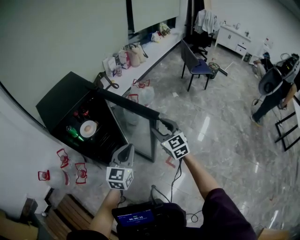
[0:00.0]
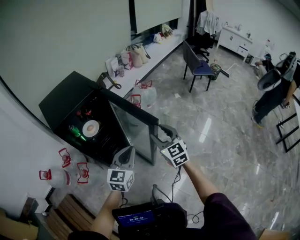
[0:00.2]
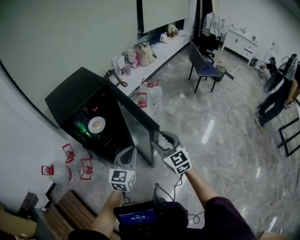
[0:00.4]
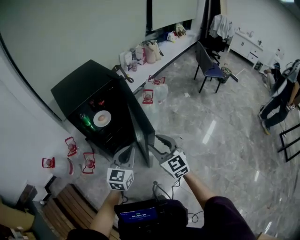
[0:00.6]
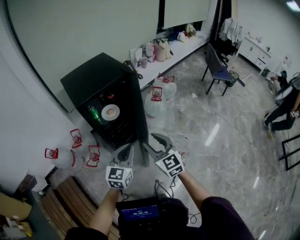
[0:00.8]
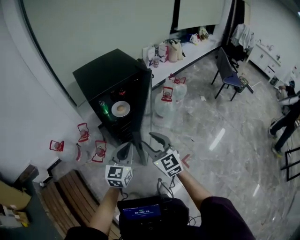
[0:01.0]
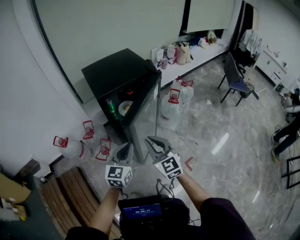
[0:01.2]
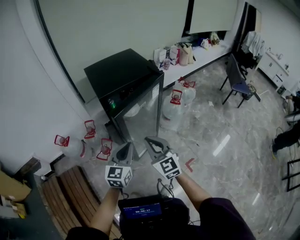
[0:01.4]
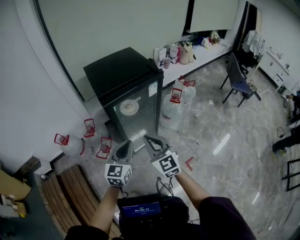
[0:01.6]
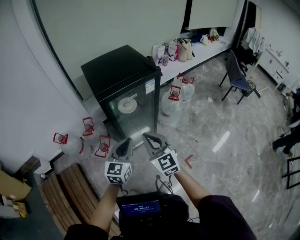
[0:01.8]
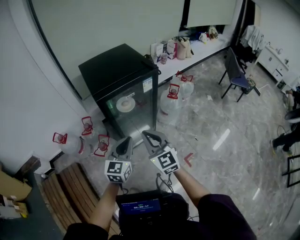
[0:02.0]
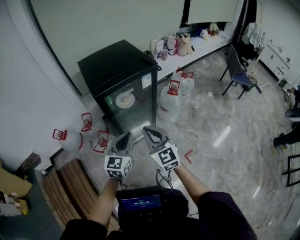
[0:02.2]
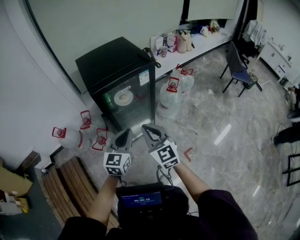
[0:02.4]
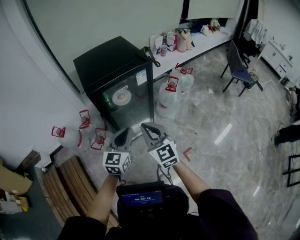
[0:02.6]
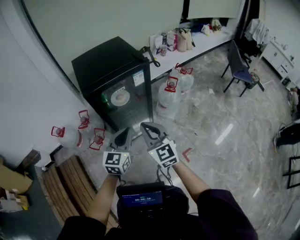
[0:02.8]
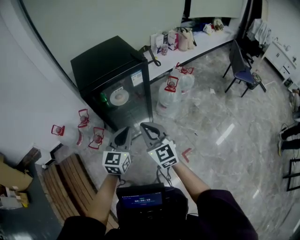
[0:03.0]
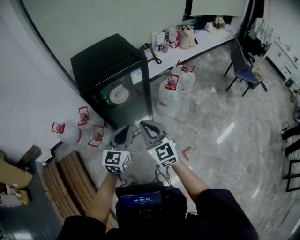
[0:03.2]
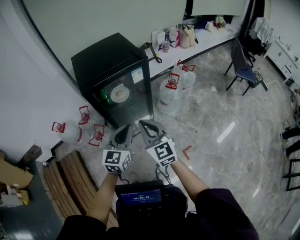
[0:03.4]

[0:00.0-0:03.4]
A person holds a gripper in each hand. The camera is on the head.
0:00.0 to 0:01.6: Both grippers move to the left, about 30 cm. The left gripper turns by some 20 degrees. Meanwhile the right gripper changes its angle by about 20 degrees, and closes.
0:01.6 to 0:03.4: Both grippers travel together to the right, roughly 10 cm.

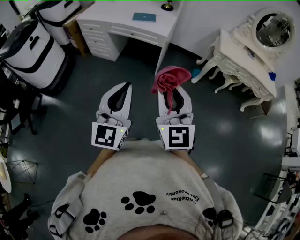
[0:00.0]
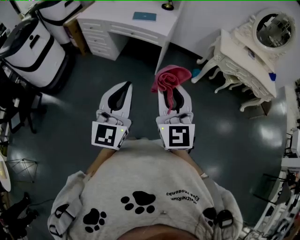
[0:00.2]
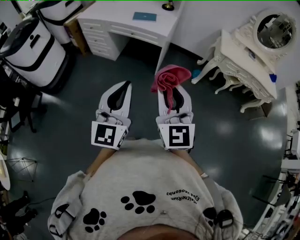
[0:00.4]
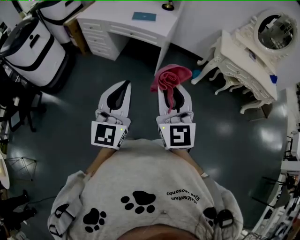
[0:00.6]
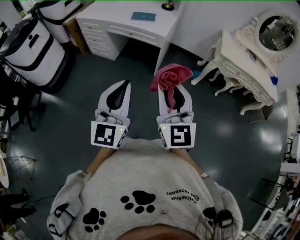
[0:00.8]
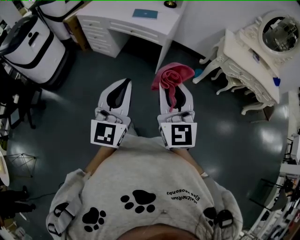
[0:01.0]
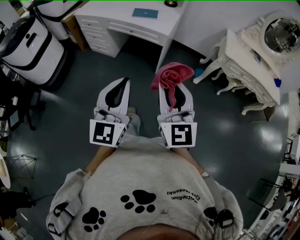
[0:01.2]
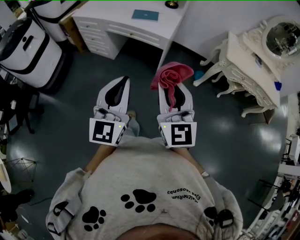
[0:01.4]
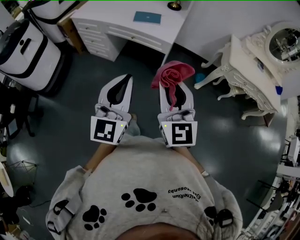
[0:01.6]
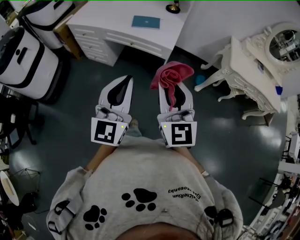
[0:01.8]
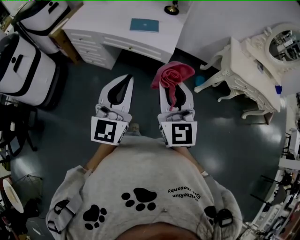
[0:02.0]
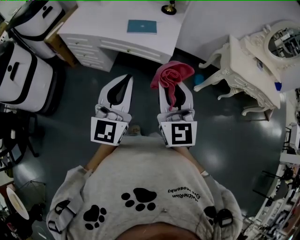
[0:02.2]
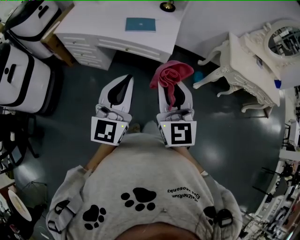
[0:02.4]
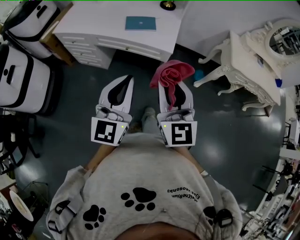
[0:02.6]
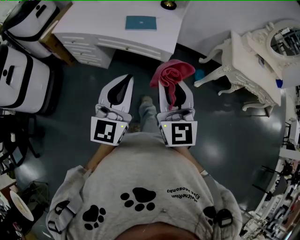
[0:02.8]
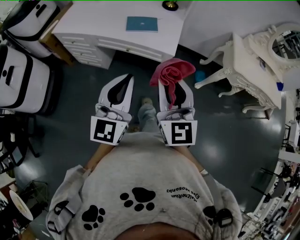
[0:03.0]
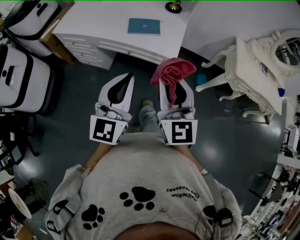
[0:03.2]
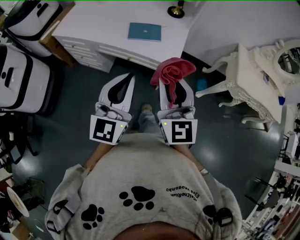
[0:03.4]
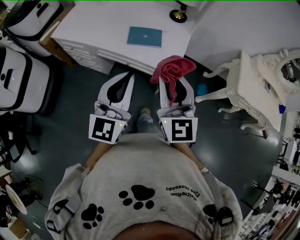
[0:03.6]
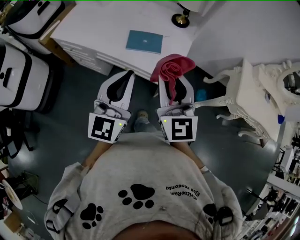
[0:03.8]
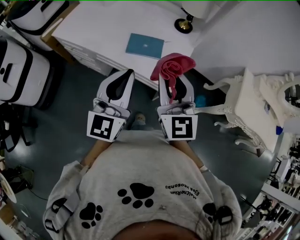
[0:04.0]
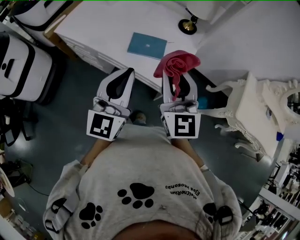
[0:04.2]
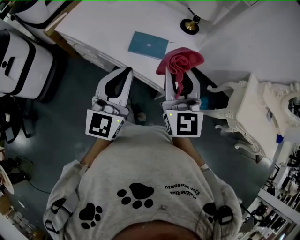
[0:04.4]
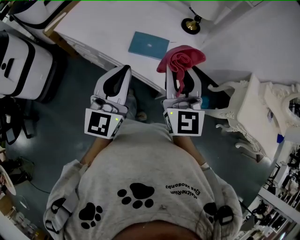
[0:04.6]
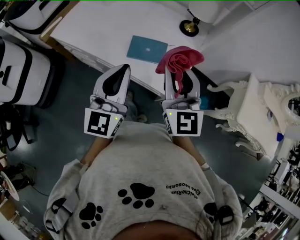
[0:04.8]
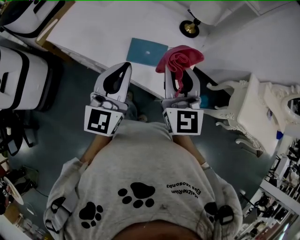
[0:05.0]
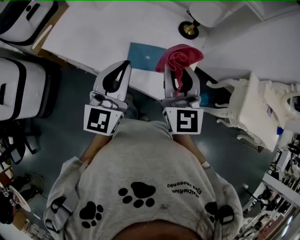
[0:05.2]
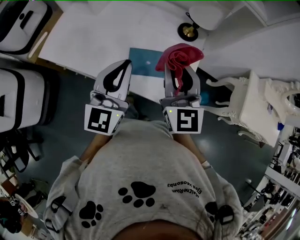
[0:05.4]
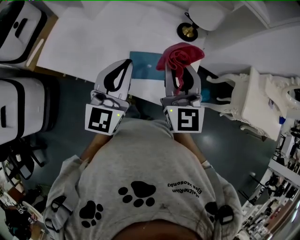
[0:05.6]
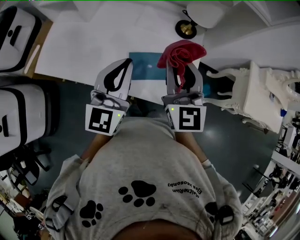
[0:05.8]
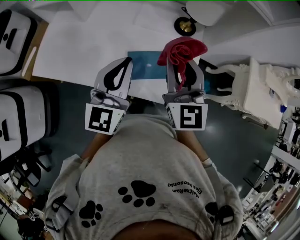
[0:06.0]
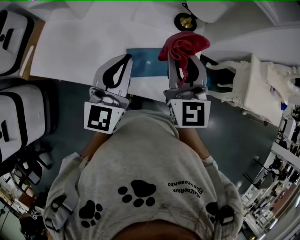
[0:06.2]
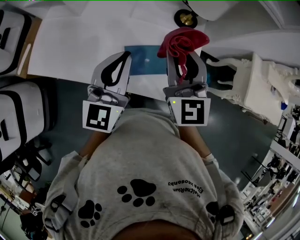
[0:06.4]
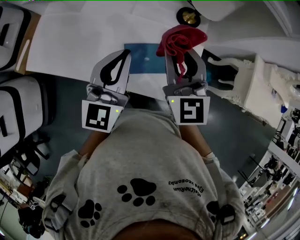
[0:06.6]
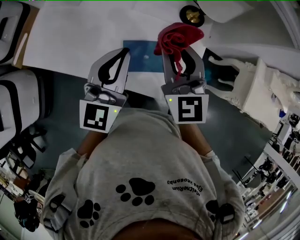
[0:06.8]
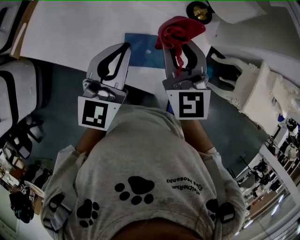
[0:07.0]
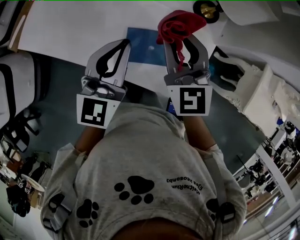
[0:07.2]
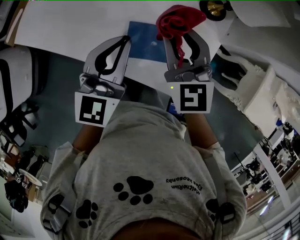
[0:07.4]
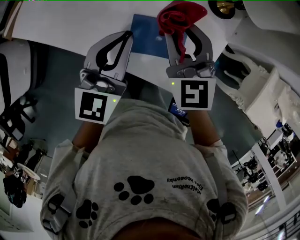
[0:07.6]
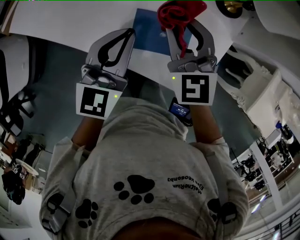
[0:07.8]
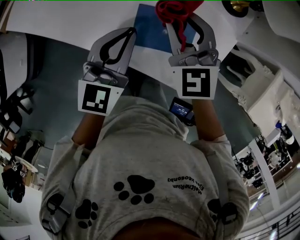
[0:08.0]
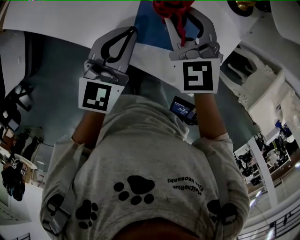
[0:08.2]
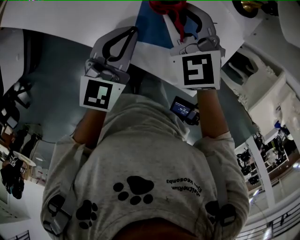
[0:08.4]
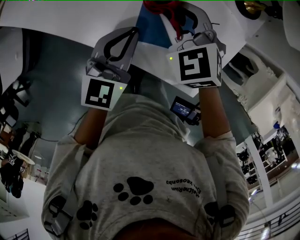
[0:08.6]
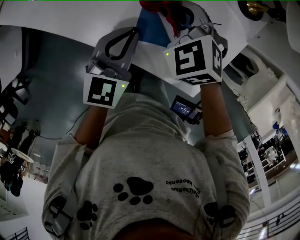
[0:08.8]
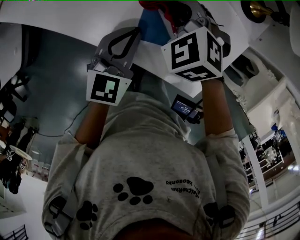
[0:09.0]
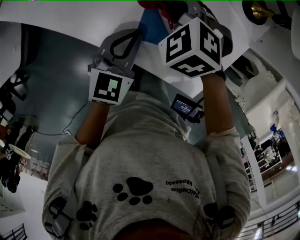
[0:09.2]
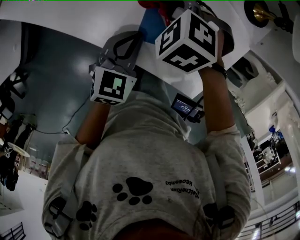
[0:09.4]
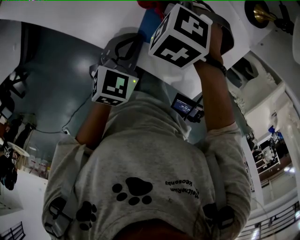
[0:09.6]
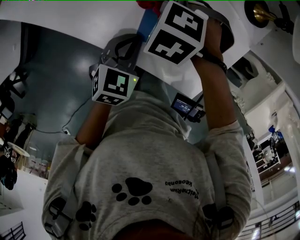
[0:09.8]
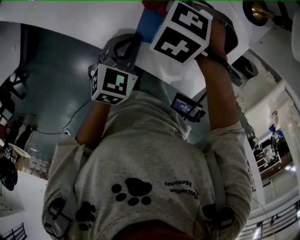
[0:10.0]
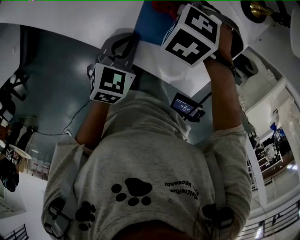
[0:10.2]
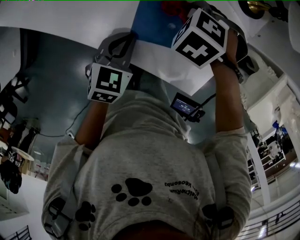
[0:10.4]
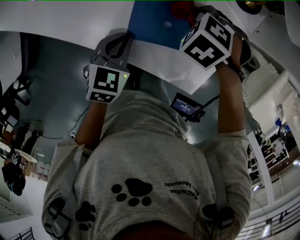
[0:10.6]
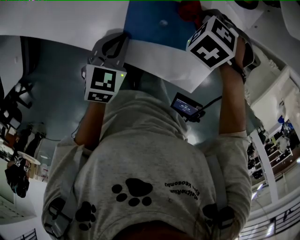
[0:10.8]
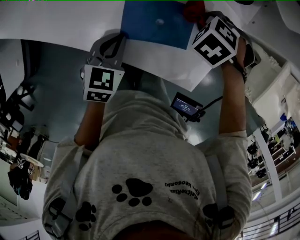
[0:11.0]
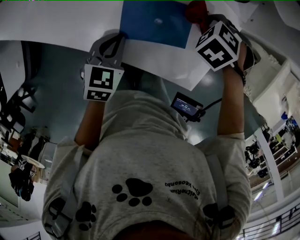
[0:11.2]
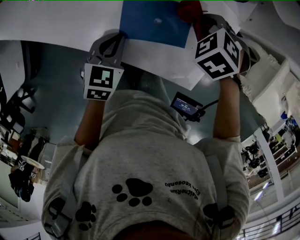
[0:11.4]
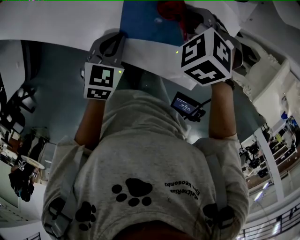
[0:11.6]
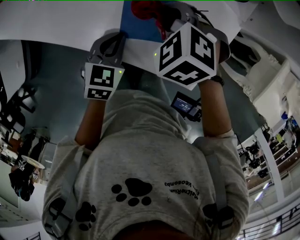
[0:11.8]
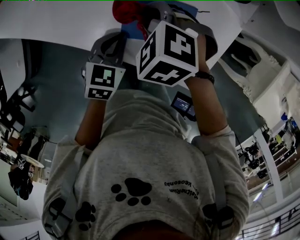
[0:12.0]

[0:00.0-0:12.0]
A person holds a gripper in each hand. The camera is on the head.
0:00.0 to 0:01.6: Both grippers move forward, about 20 cm.
0:01.6 to 0:03.0: Both grippers move forward, roughly 20 cm.
0:03.0 to 0:04.4: The two grippers go roughly 25 cm forward.
0:04.4 to 0:06.0: Both grippers move forward, roughly 20 cm.
0:06.0 to 0:07.6: The right gripper goes approximately 15 cm downward and forward, and swivels some 30 degrees. Meanwhile the left gripper heads downward, covering approximately 10 cm.
0:07.6 to 0:09.0: Both grippers travel together downward, approximately 15 cm. The left gripper rotates some 20 degrees. Meanwhile the right gripper tilts its fingers some 40 degrees downward.
0:09.0 to 0:10.4: The right gripper moves some 10 cm, and swivels about 30 degrees; the left gripper moves downward, about 5 cm.
0:10.4 to 0:12.0: The right gripper moves some 10 cm, and changes its angle by approximately 20 degrees.

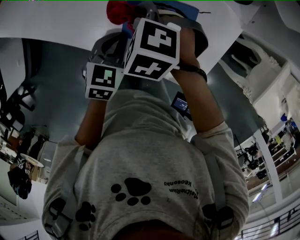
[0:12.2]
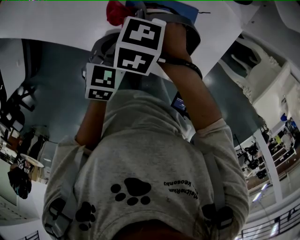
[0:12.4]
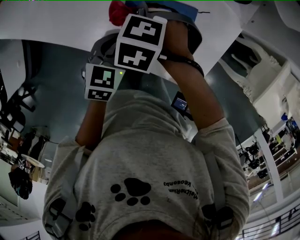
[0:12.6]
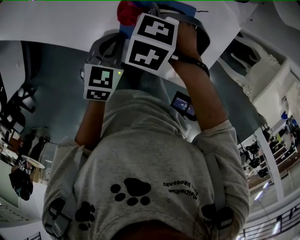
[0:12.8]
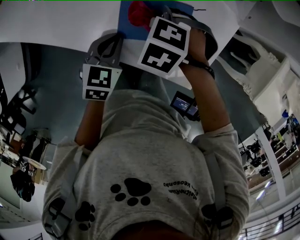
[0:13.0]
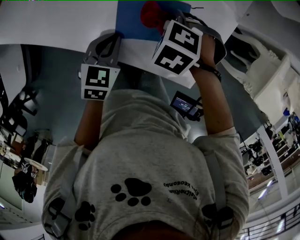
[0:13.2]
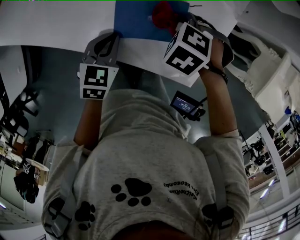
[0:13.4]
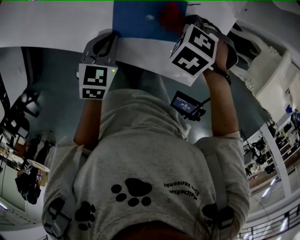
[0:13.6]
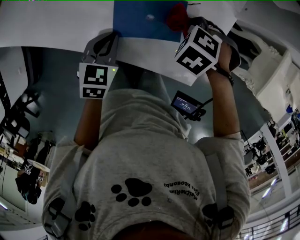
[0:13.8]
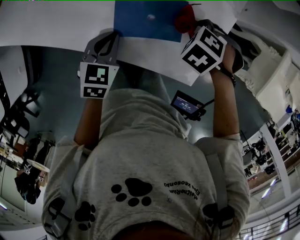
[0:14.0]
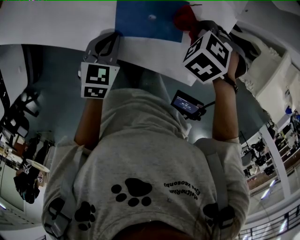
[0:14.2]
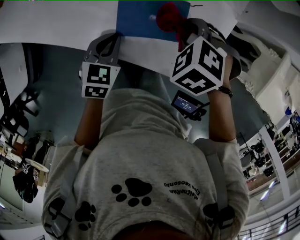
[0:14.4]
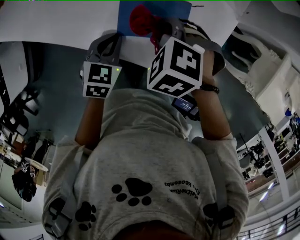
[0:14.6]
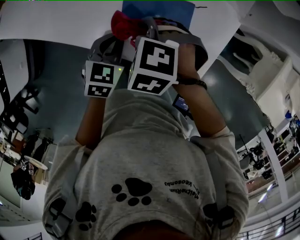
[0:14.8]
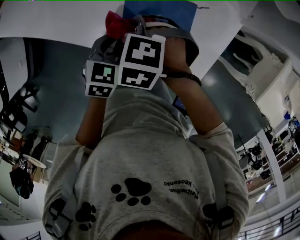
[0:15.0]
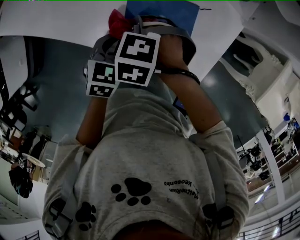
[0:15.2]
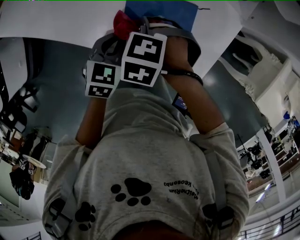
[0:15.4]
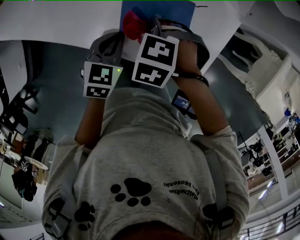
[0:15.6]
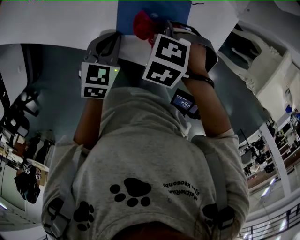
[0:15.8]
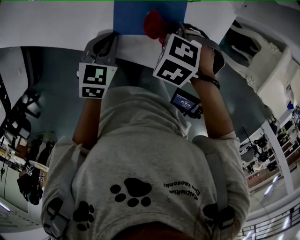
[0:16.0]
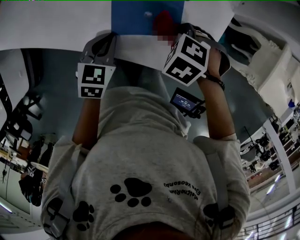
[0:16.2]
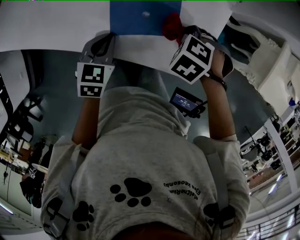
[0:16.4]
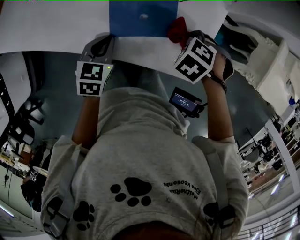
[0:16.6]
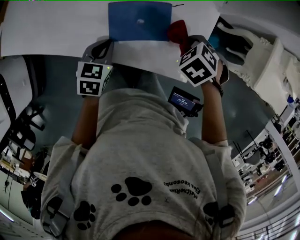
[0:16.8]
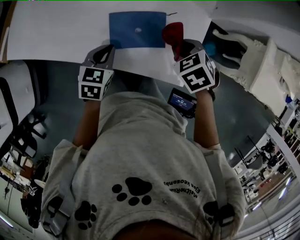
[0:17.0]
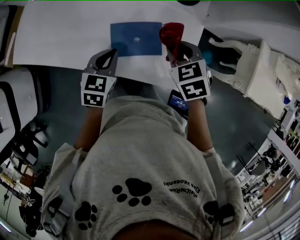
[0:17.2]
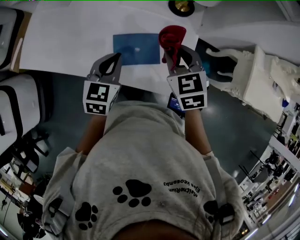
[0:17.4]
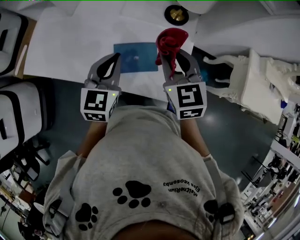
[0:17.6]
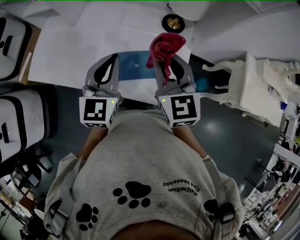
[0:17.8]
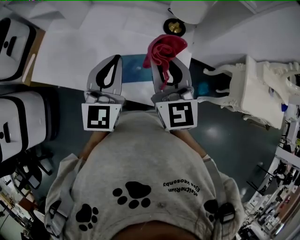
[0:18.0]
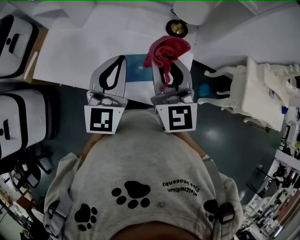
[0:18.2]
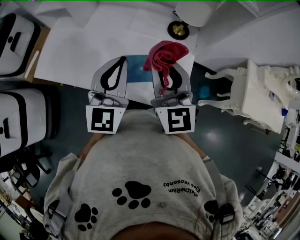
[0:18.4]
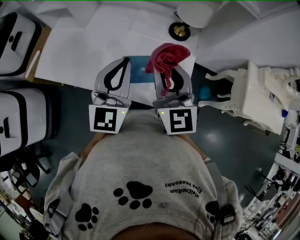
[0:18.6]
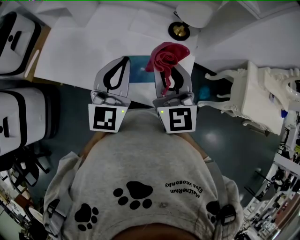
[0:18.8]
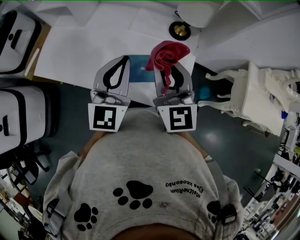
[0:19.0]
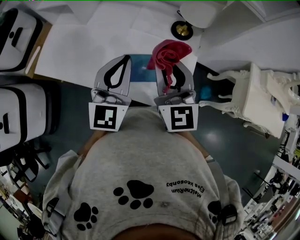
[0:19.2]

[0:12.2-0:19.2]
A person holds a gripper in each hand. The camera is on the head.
0:12.2 to 0:13.6: The right gripper ends up some 15 cm from where it was, and changes its angle by about 20 degrees.
0:13.6 to 0:15.0: The right gripper changes place by approximately 15 cm.
0:15.0 to 0:16.4: The right gripper shifts by about 20 cm, and turns by approximately 20 degrees.
0:16.4 to 0:17.8: Both grippers travel together upward, roughly 30 cm. The left gripper tilts its fingers some 40 degrees upward, while the right gripper angles its fingers upward, by some 80 degrees.

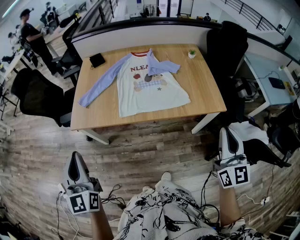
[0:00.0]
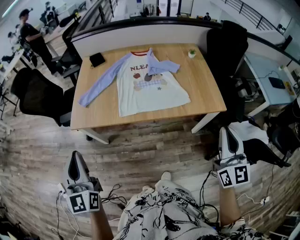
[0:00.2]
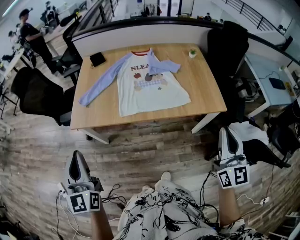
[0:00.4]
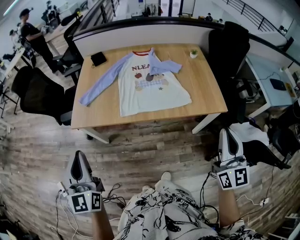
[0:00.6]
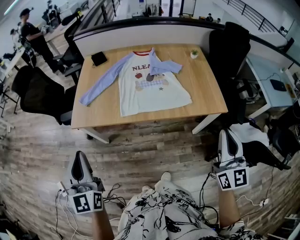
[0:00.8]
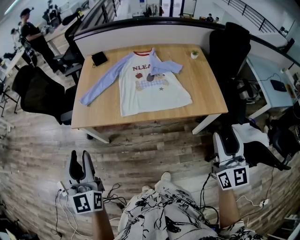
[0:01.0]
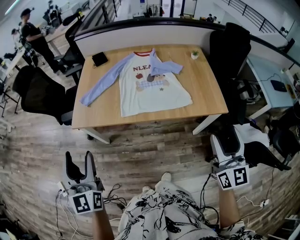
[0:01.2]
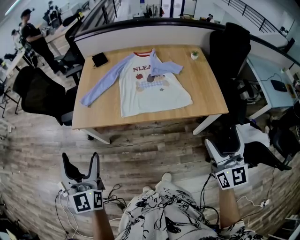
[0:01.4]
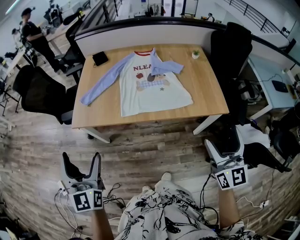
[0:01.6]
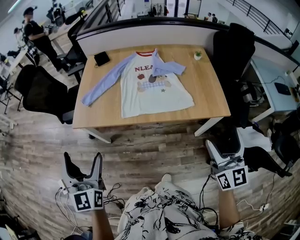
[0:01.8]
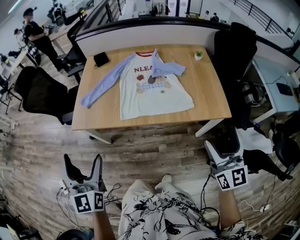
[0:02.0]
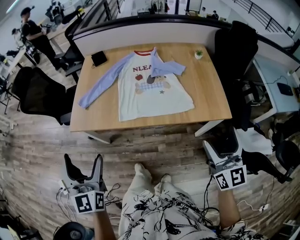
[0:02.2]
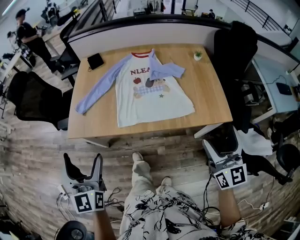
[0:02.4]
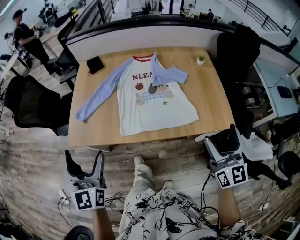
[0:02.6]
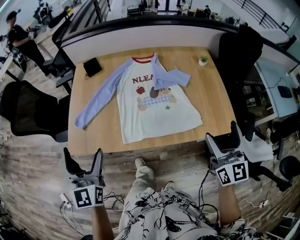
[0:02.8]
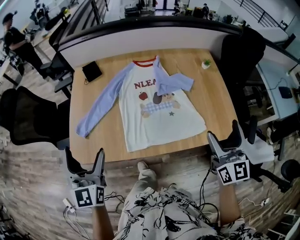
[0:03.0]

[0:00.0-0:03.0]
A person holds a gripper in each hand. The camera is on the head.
0:00.0 to 0:01.6: The left gripper opens; the right gripper opens up.
0:01.6 to 0:03.0: The two grippers go roughly 30 cm forward.
